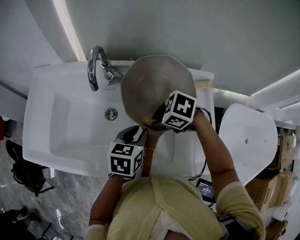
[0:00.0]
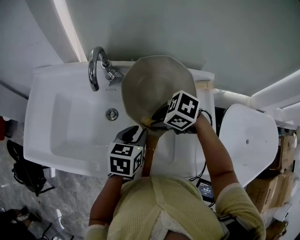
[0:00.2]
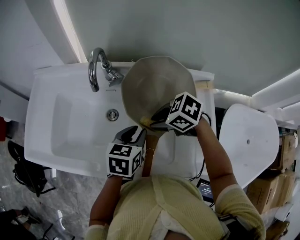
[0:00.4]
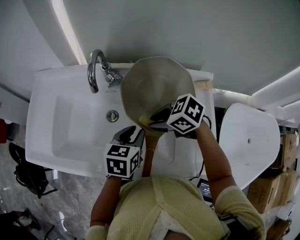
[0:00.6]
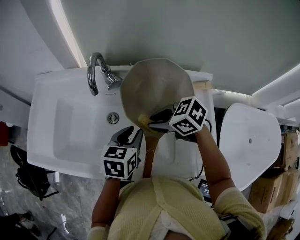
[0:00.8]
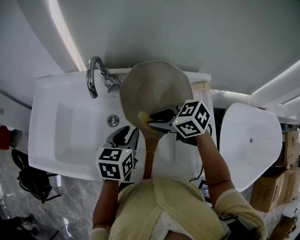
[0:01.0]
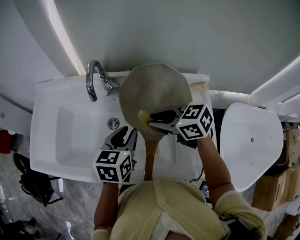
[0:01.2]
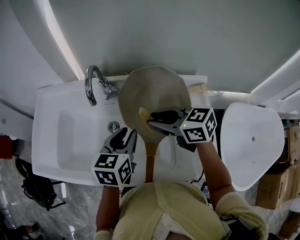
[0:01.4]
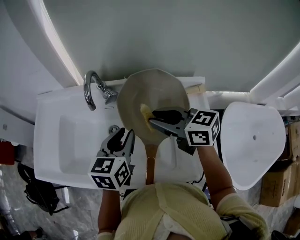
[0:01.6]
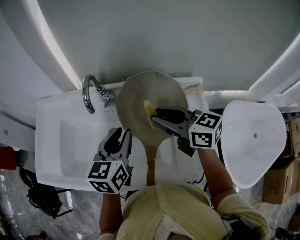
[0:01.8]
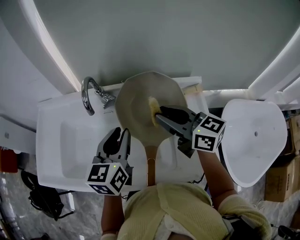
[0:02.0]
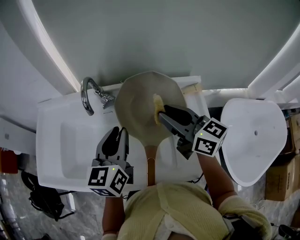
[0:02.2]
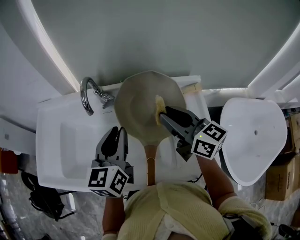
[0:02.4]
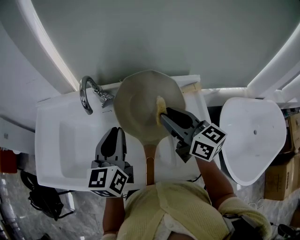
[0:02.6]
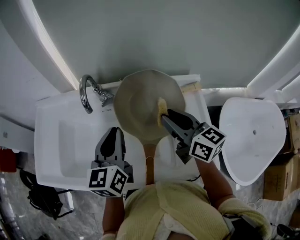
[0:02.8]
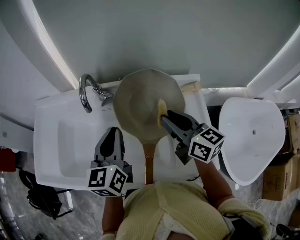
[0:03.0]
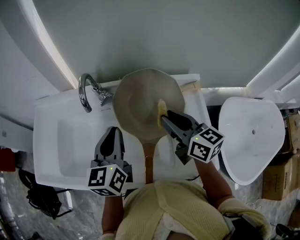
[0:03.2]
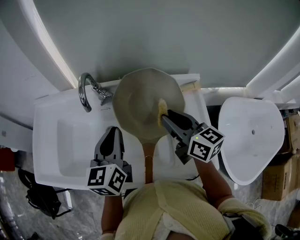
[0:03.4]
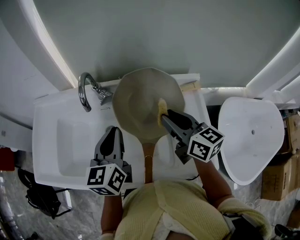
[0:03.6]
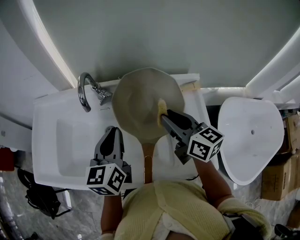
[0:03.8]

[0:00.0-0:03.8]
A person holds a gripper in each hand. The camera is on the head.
0.0 to 1.2 s: The left gripper is displaced upward by some 5 cm. Meanwhile the right gripper shifts some 10 cm upward, and swivels roughly 40 degrees.
1.2 to 2.6 s: The left gripper travels upward by about 10 cm, and rotates approximately 20 degrees. Meanwhile the right gripper is displaced upward and to the right by some 10 cm, and rotates some 40 degrees.
2.6 to 3.8 s: The grippers make only small movements.

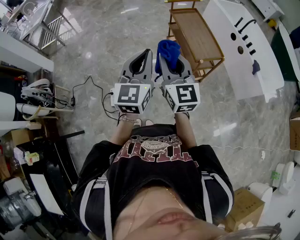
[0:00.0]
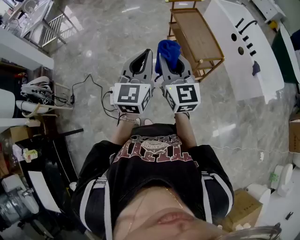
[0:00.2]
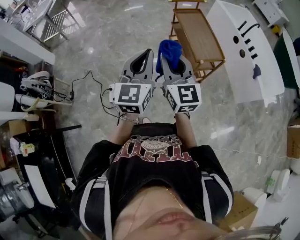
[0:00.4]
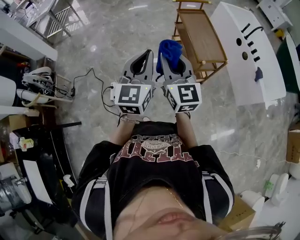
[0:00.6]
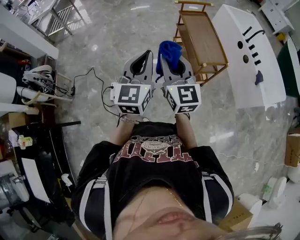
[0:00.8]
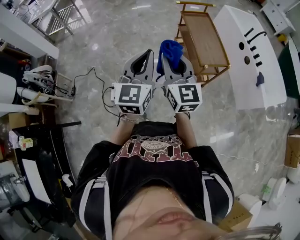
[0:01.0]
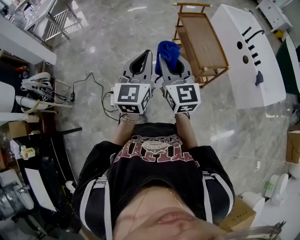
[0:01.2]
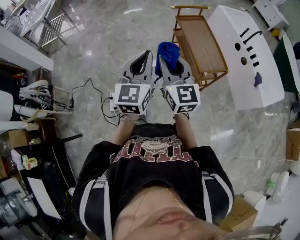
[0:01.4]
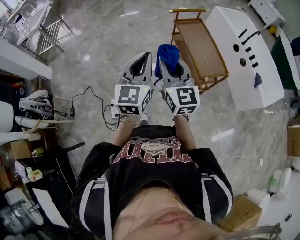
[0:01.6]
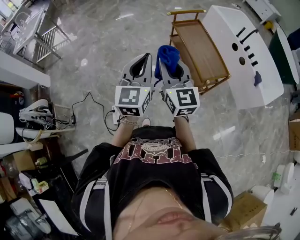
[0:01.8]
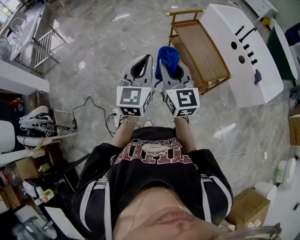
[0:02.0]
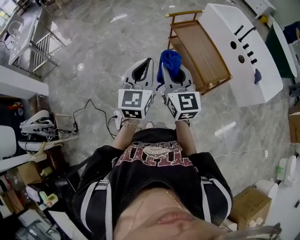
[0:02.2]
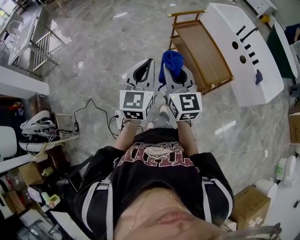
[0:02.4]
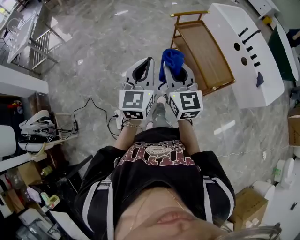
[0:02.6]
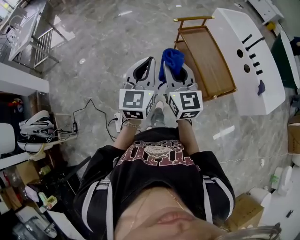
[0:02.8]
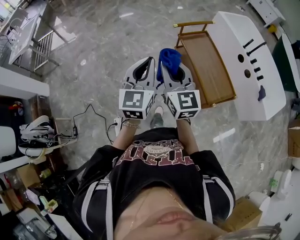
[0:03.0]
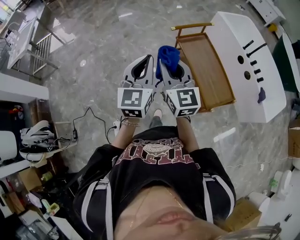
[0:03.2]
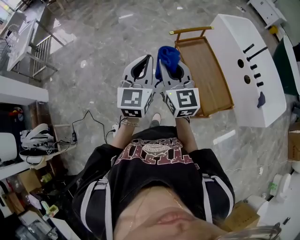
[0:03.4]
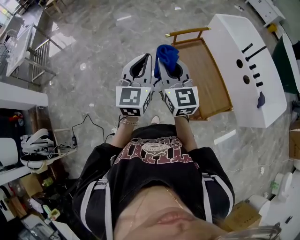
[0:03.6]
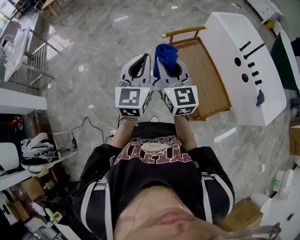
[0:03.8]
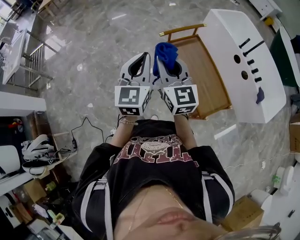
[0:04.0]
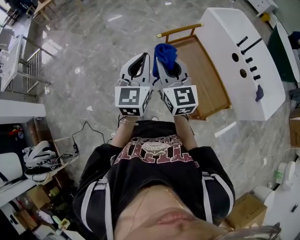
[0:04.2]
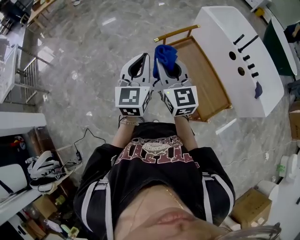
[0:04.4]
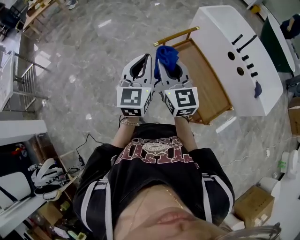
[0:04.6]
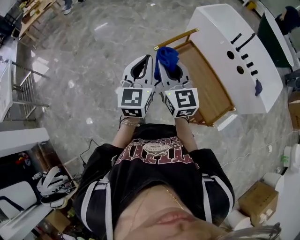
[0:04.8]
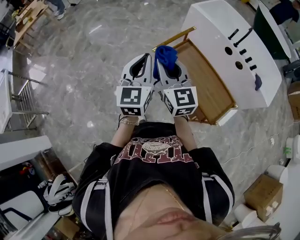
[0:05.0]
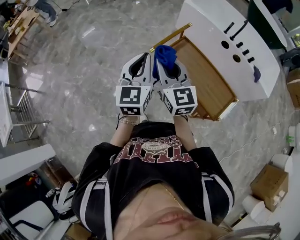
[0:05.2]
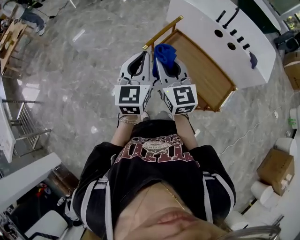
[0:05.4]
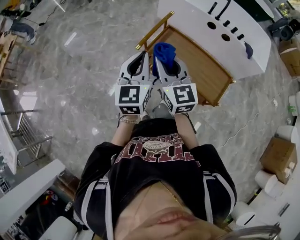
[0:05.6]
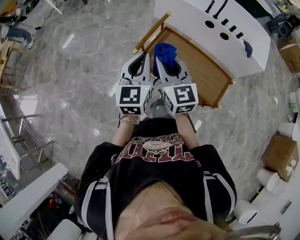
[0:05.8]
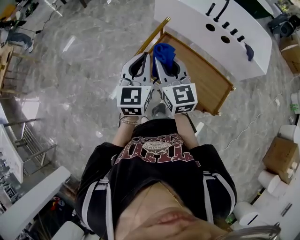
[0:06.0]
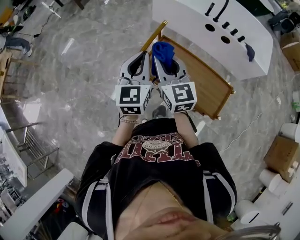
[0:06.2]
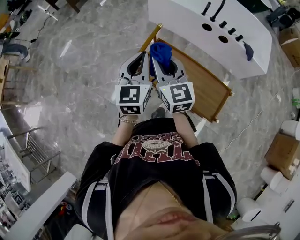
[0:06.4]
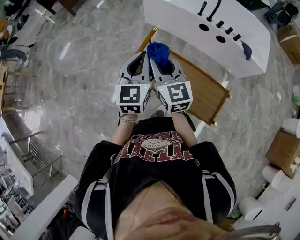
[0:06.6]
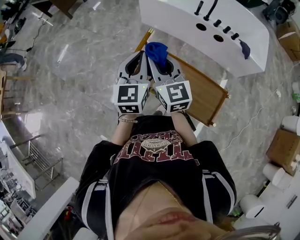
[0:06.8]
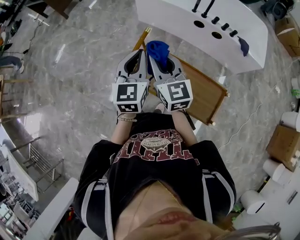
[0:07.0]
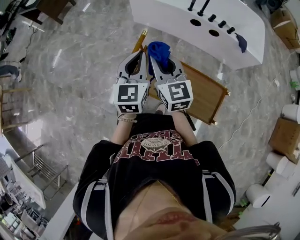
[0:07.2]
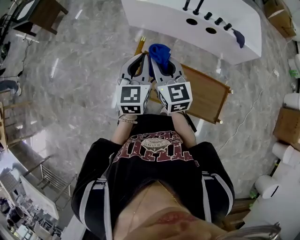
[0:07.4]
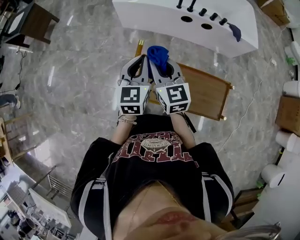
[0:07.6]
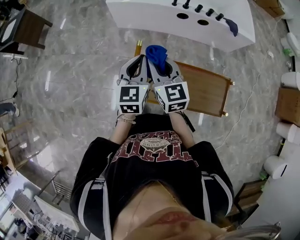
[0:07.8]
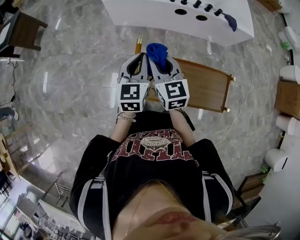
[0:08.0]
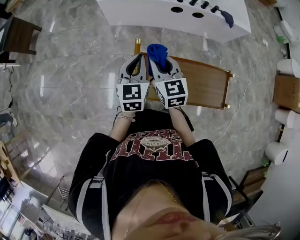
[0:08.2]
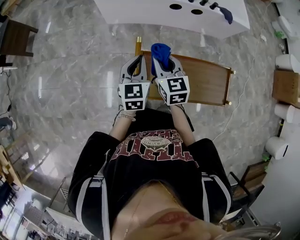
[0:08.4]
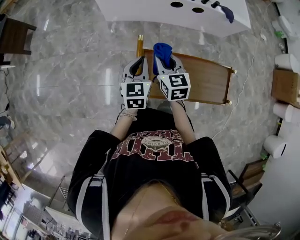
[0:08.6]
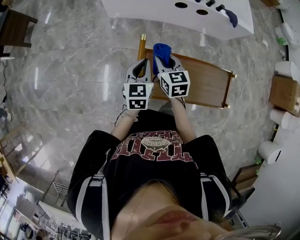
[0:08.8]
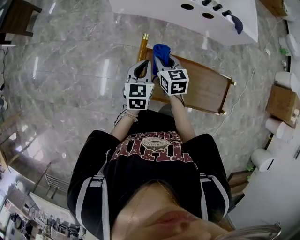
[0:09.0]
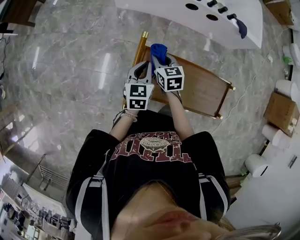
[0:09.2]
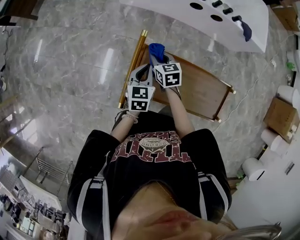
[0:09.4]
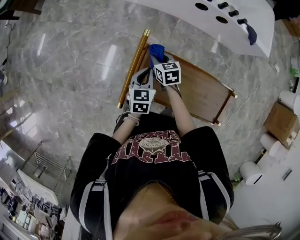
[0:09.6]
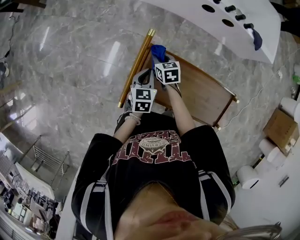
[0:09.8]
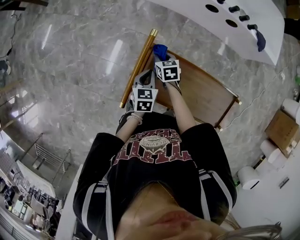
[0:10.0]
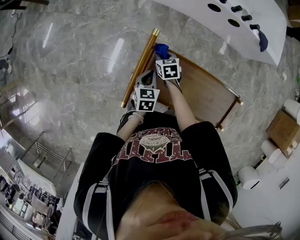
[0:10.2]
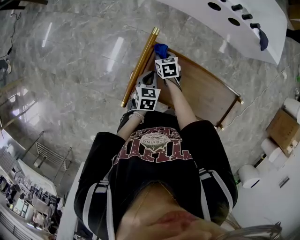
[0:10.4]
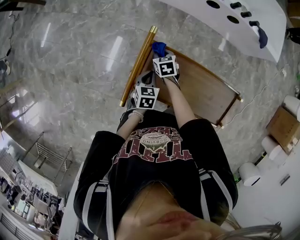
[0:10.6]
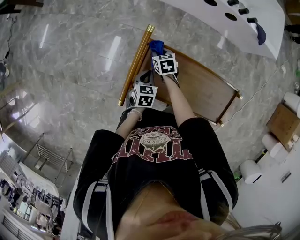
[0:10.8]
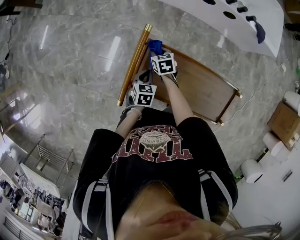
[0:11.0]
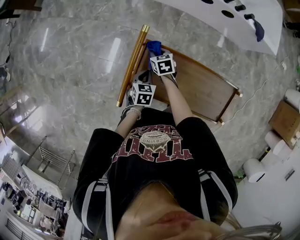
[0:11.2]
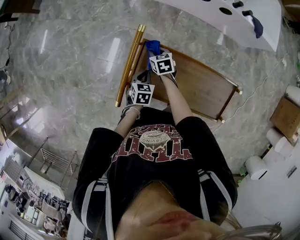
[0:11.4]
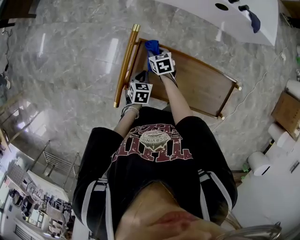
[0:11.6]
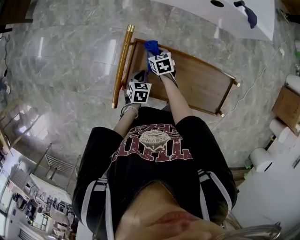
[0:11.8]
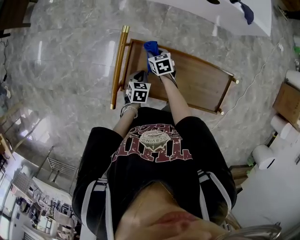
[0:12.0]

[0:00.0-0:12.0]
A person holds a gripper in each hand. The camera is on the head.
0.0 to 1.6 s: Both grippers travel together forward, some 15 cm.
1.6 to 3.0 s: The grippers both shift forward by about 20 cm.
3.0 to 4.4 s: The two grippers go about 20 cm forward.
4.4 to 6.0 s: The right gripper changes place by roughly 20 cm, and rotates some 30 degrees. Meanwhile the left gripper moves some 25 cm, and changes its angle by about 30 degrees.
6.0 to 7.6 s: Both grippers move forward, roughly 25 cm. The right gripper changes its angle by some 20 degrees. The left gripper turns by some 20 degrees.
7.6 to 9.0 s: The grippers both shift downward by approximately 15 cm. The right gripper rotates about 20 degrees.
9.0 to 10.4 s: The two grippers go approximately 20 cm downward. The right gripper rotates some 20 degrees. Meanwhile the left gripper changes its angle by some 20 degrees.
10.4 to 12.0 s: The left gripper is displaced downward by approximately 5 cm. The right gripper heads to the right, covering about 5 cm.

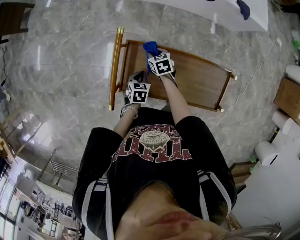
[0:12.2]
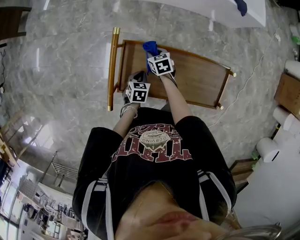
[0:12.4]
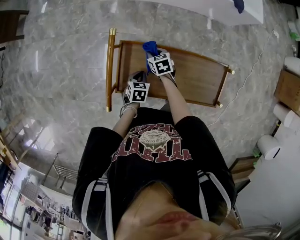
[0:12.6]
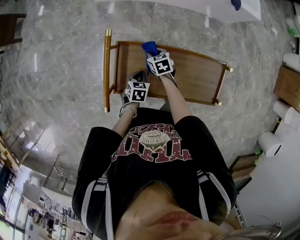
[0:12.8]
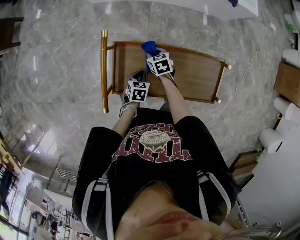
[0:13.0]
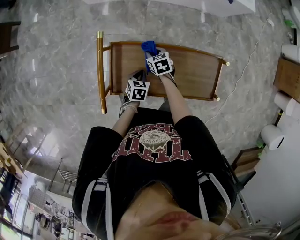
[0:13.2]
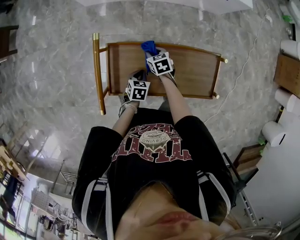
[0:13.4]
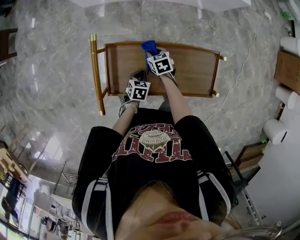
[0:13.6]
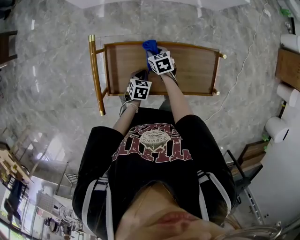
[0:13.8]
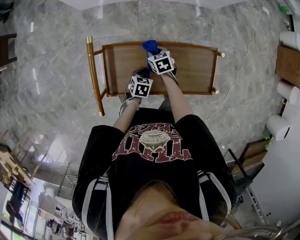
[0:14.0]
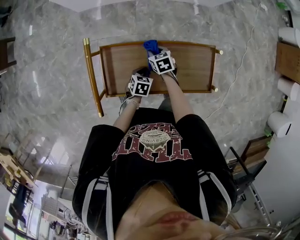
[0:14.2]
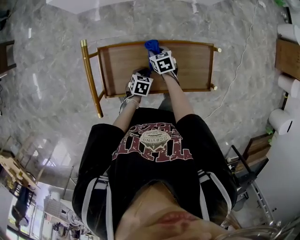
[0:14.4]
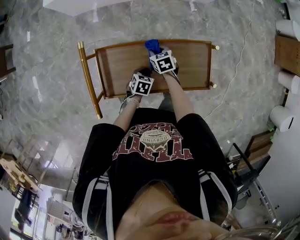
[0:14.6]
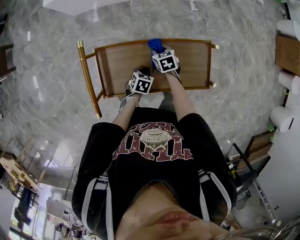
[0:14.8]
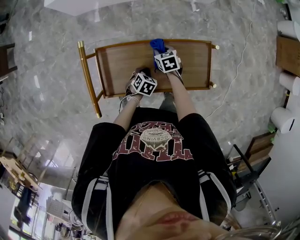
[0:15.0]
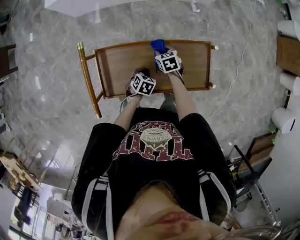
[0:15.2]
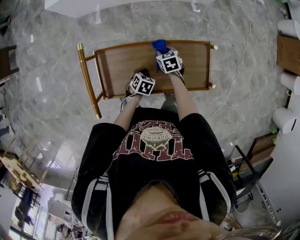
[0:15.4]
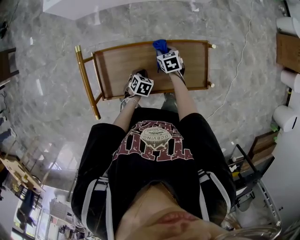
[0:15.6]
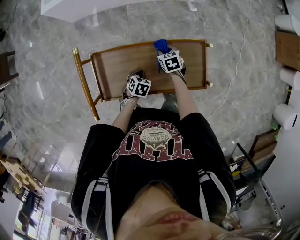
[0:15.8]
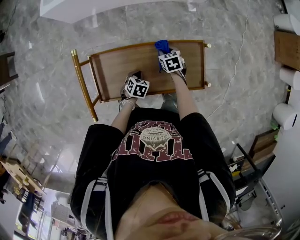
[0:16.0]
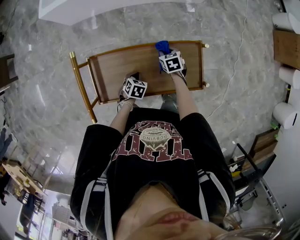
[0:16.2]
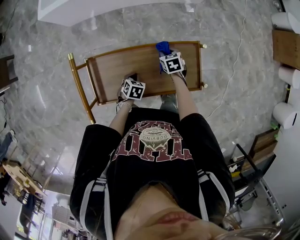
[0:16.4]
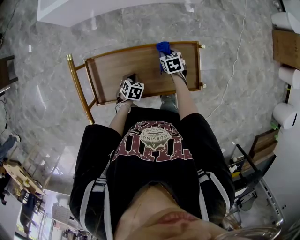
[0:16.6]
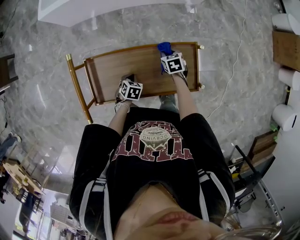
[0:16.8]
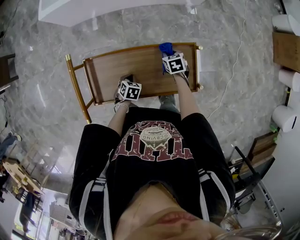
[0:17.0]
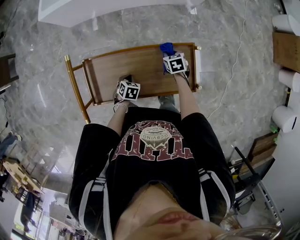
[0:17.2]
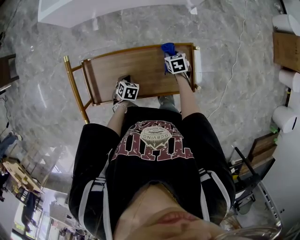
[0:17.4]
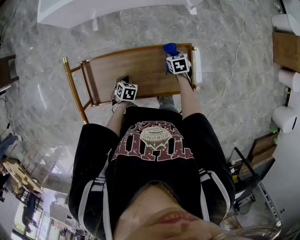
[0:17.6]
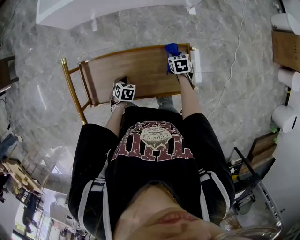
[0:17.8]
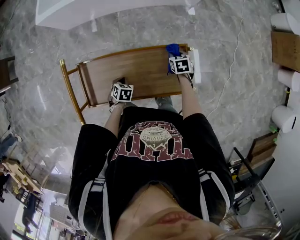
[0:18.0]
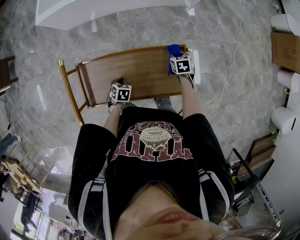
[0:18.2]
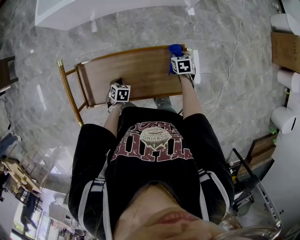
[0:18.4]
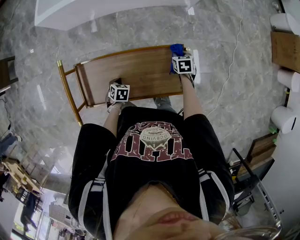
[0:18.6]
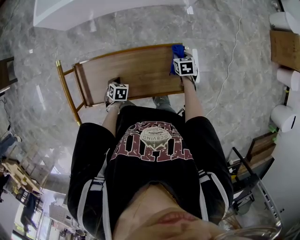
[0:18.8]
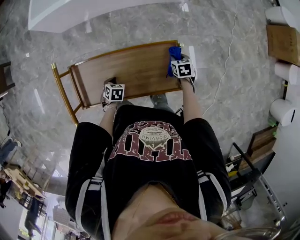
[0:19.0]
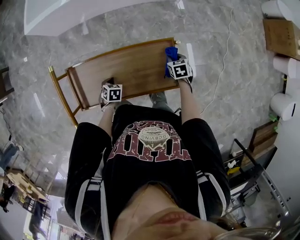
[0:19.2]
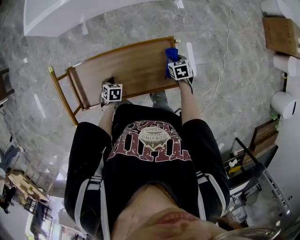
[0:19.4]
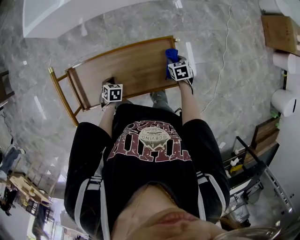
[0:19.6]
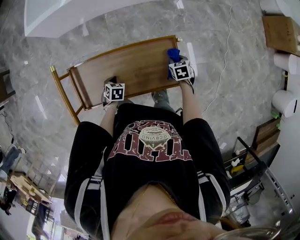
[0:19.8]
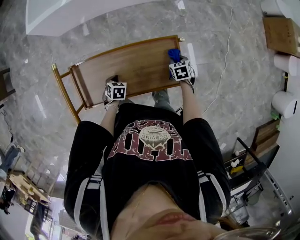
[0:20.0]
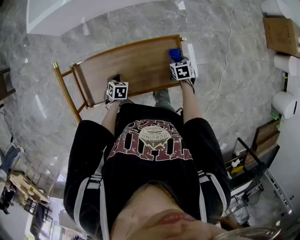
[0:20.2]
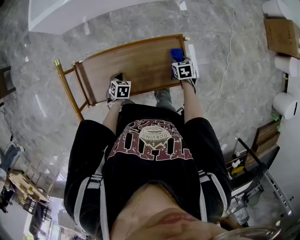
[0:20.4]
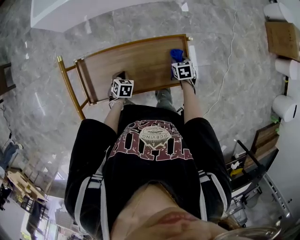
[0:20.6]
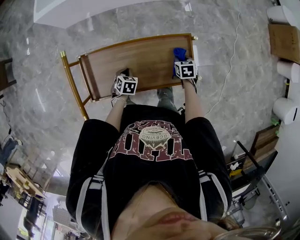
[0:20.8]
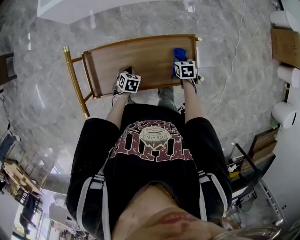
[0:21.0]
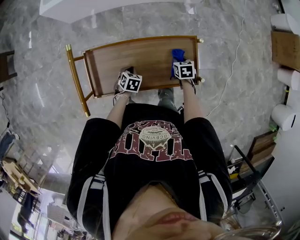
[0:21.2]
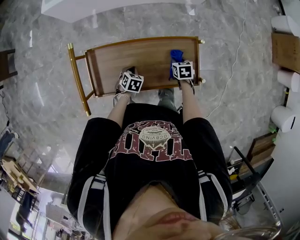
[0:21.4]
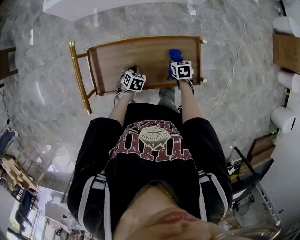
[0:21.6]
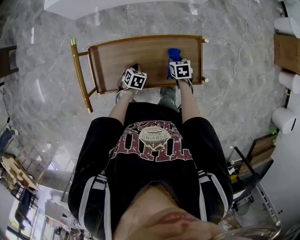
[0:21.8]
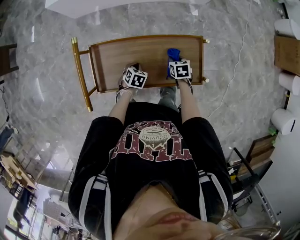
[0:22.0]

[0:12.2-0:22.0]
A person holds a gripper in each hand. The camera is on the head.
12.2 to 13.6 s: Both grippers travel together to the right, approximately 10 cm.
13.6 to 15.0 s: Both grippers move to the right, approximately 10 cm. The left gripper changes its angle by about 20 degrees.
15.0 to 16.4 s: The right gripper is displaced to the right by some 10 cm.
16.4 to 17.8 s: The right gripper goes about 10 cm to the right.
17.8 to 19.2 s: The right gripper shifts by about 10 cm.
19.2 to 20.6 s: The right gripper changes place by some 5 cm.
20.6 to 22.0 s: The right gripper travels to the left by about 10 cm.
